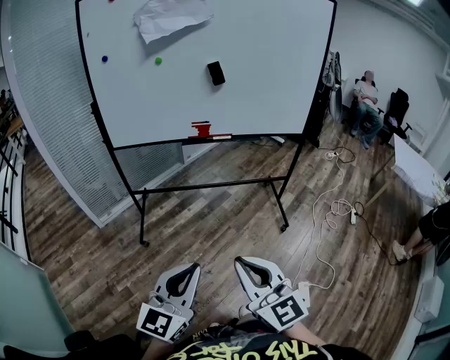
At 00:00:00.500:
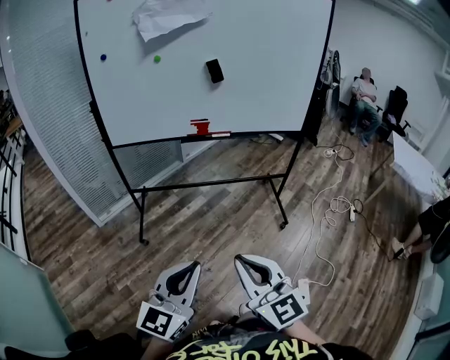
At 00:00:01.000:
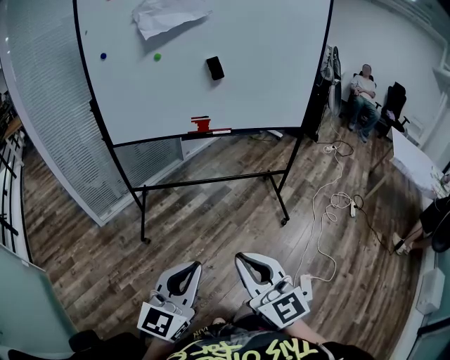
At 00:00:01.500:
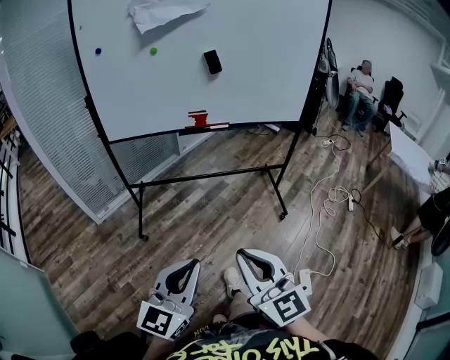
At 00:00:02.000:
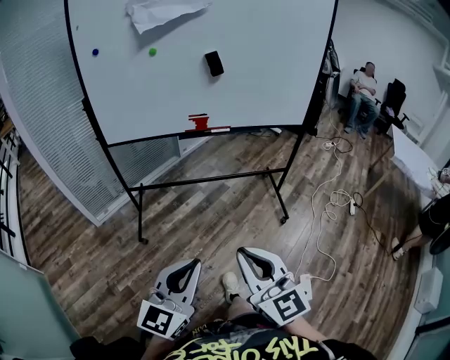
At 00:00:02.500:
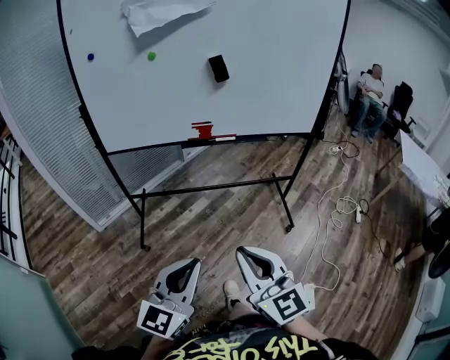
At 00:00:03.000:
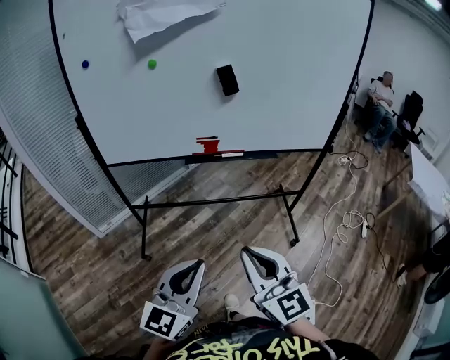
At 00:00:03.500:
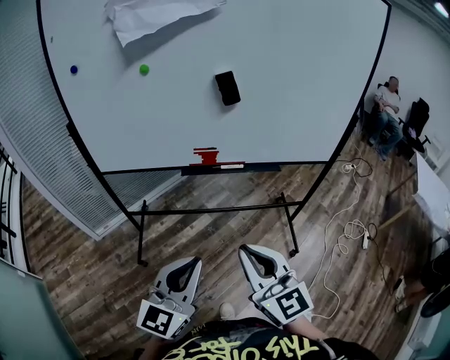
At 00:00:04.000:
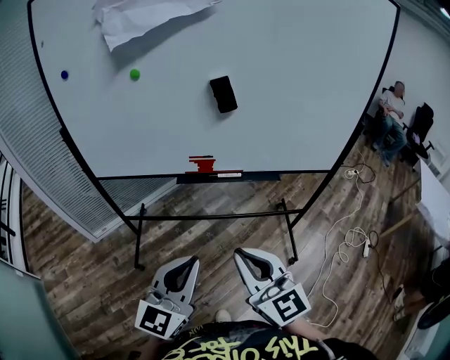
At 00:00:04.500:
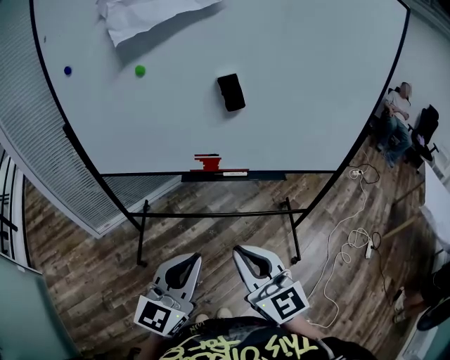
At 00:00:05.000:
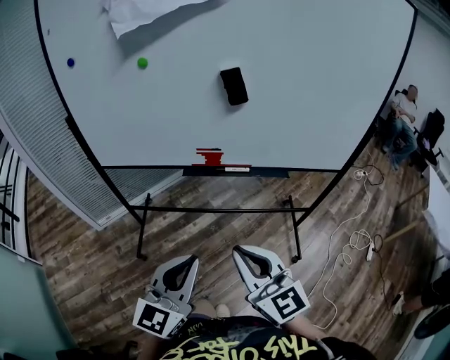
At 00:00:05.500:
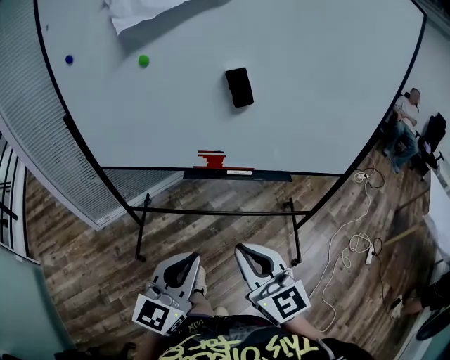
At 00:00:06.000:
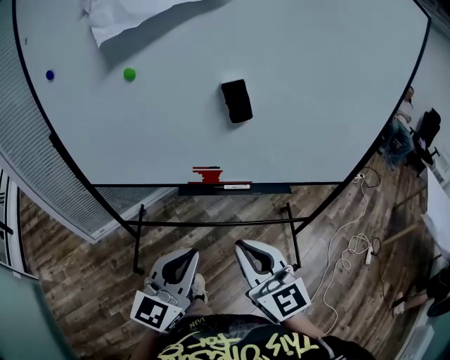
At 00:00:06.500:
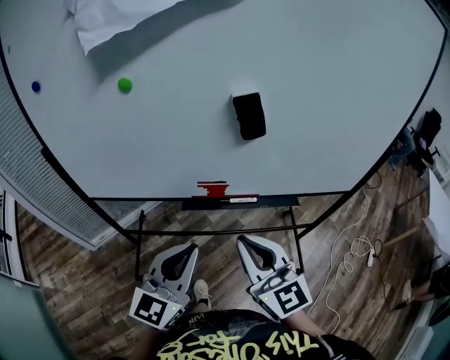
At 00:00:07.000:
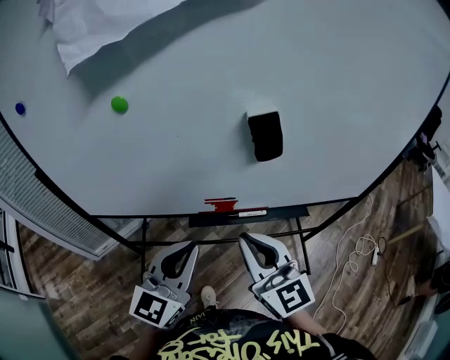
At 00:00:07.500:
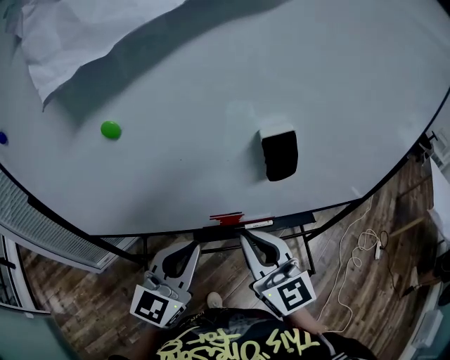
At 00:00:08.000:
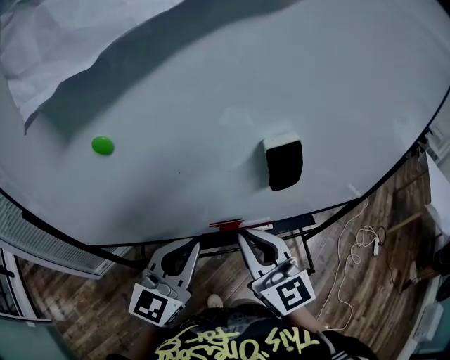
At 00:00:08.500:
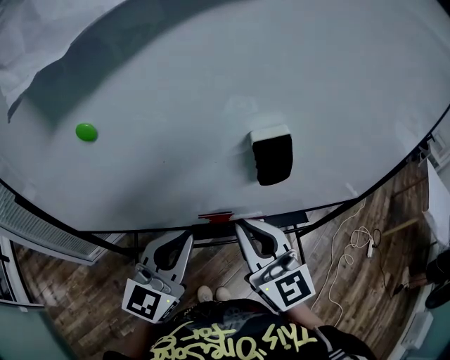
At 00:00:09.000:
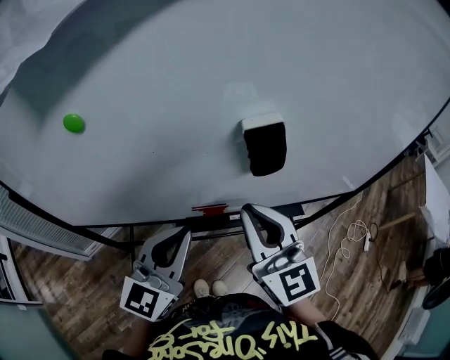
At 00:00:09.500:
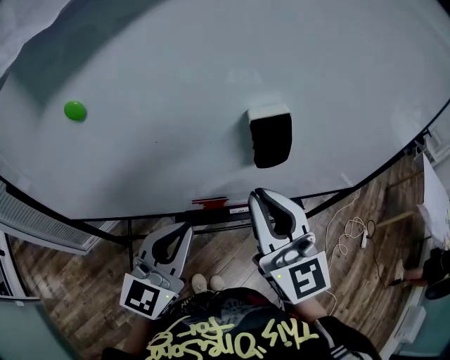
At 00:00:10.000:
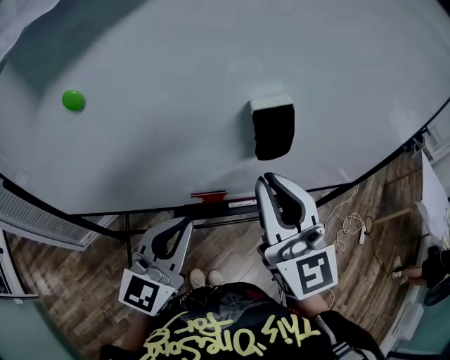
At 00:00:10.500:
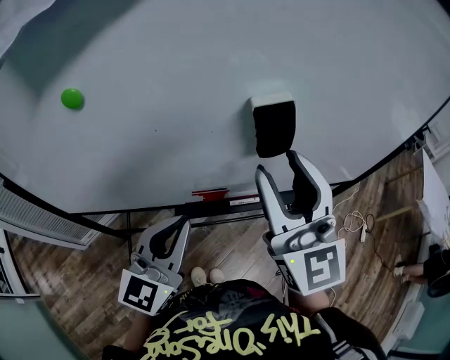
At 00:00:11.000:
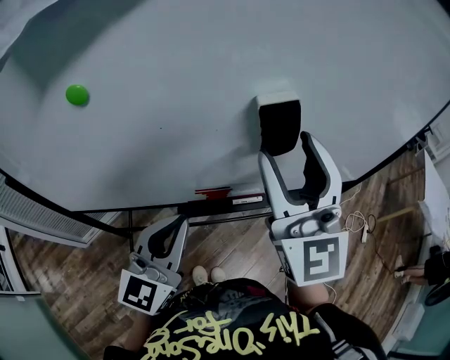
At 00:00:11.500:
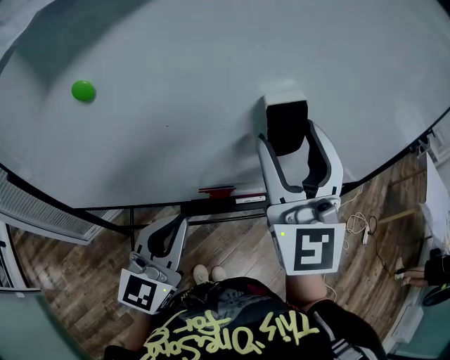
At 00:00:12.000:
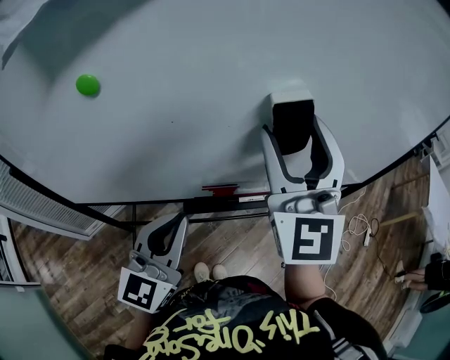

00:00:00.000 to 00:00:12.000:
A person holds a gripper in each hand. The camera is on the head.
00:00:00.000 to 00:00:02.000: The grippers make only small movements.
00:00:02.000 to 00:00:04.000: The two grippers go some 25 cm forward.
00:00:04.000 to 00:00:06.000: Both grippers move forward, about 10 cm.
00:00:06.000 to 00:00:08.000: Both grippers move forward, approximately 20 cm.
00:00:08.000 to 00:00:10.000: The right gripper heads upward and to the right, covering roughly 10 cm.
00:00:10.000 to 00:00:12.000: The right gripper travels forward and upward by approximately 5 cm, swivels about 20 degrees, and opens up.

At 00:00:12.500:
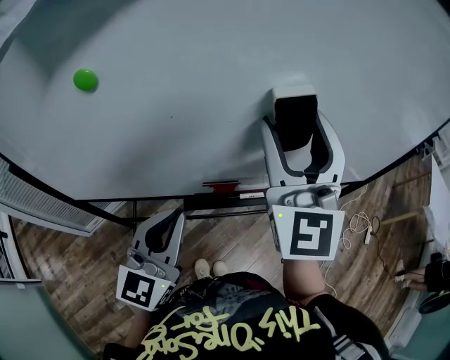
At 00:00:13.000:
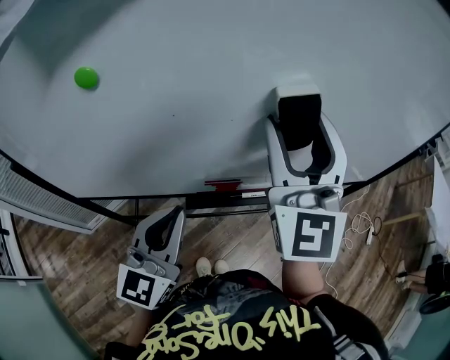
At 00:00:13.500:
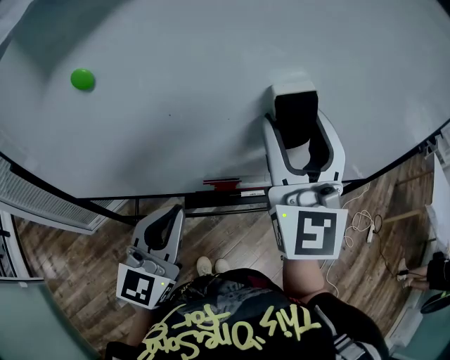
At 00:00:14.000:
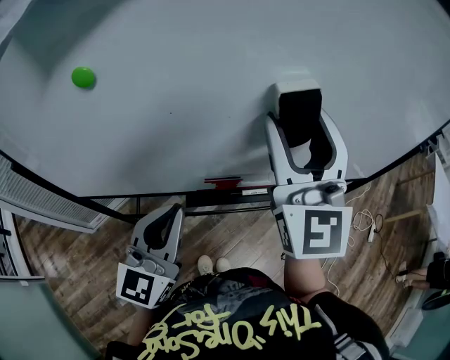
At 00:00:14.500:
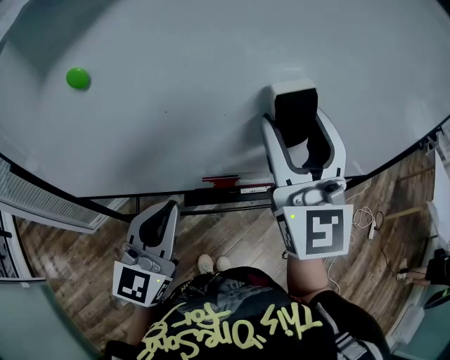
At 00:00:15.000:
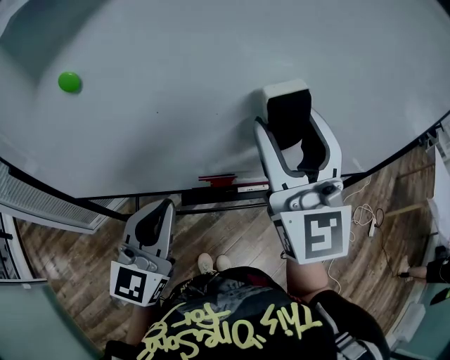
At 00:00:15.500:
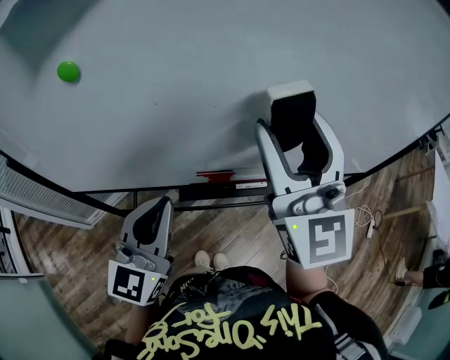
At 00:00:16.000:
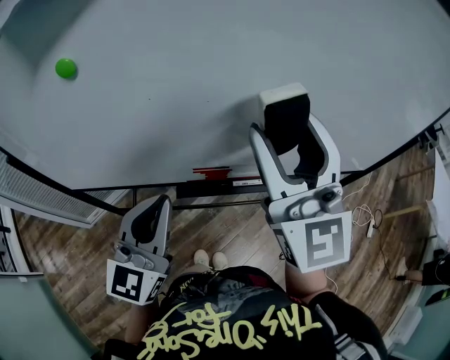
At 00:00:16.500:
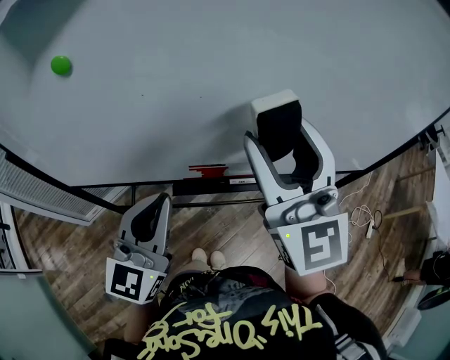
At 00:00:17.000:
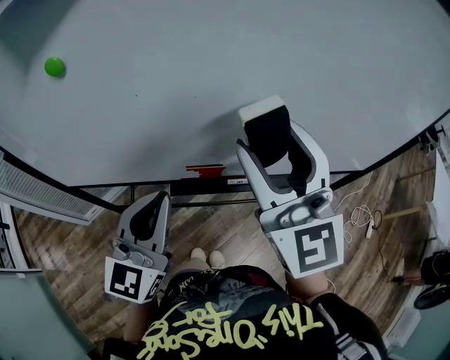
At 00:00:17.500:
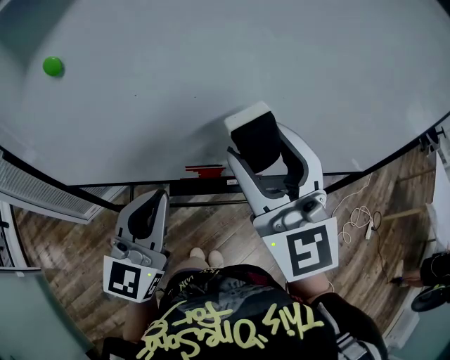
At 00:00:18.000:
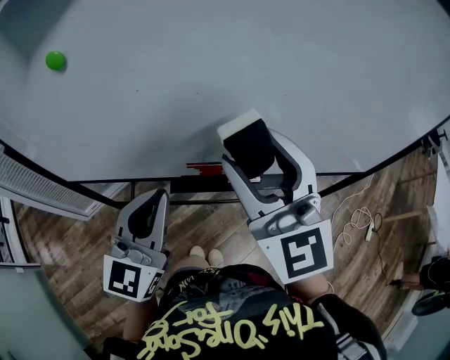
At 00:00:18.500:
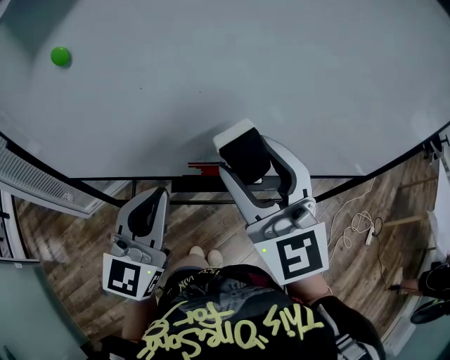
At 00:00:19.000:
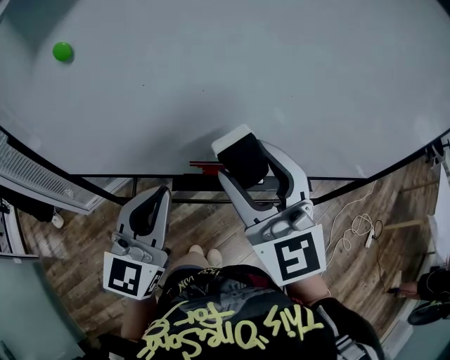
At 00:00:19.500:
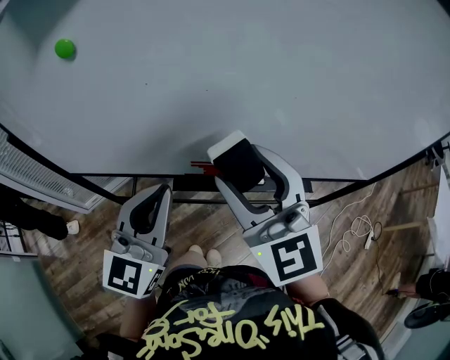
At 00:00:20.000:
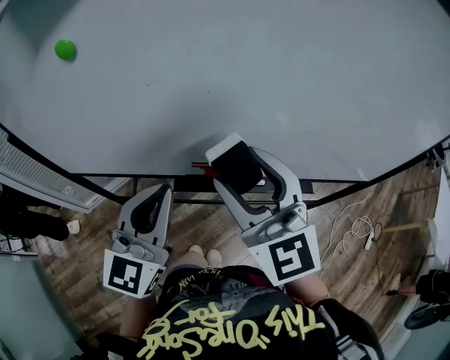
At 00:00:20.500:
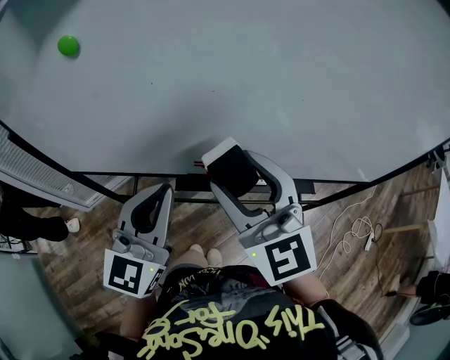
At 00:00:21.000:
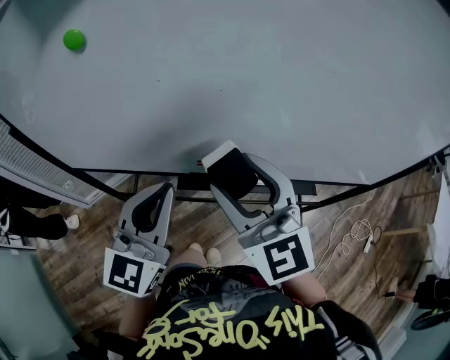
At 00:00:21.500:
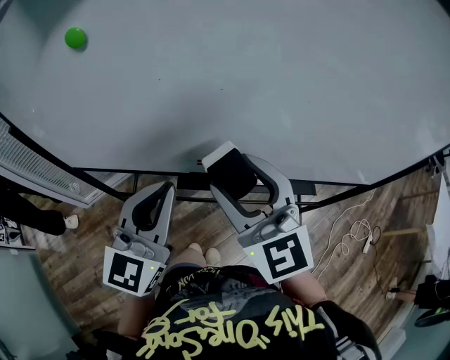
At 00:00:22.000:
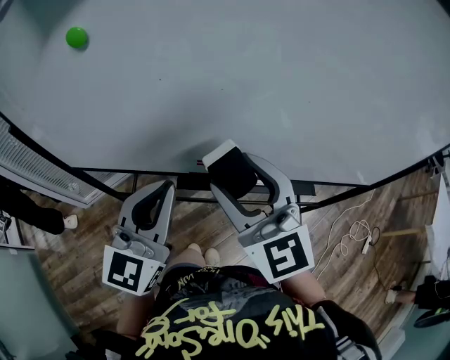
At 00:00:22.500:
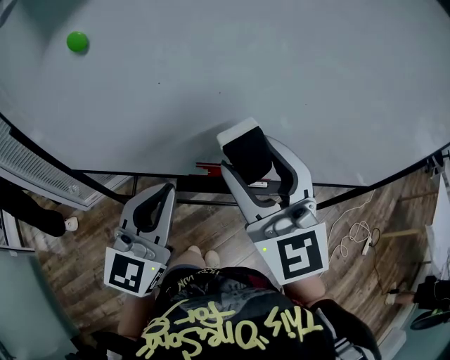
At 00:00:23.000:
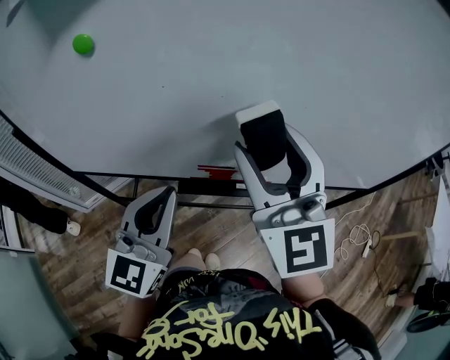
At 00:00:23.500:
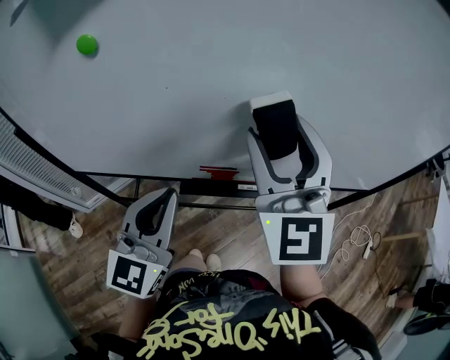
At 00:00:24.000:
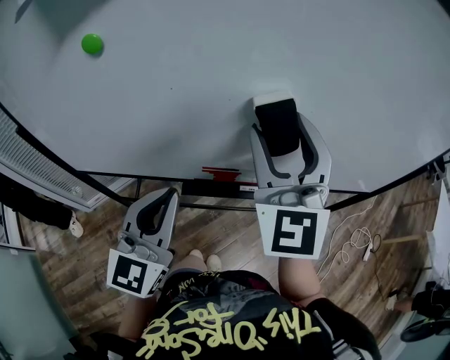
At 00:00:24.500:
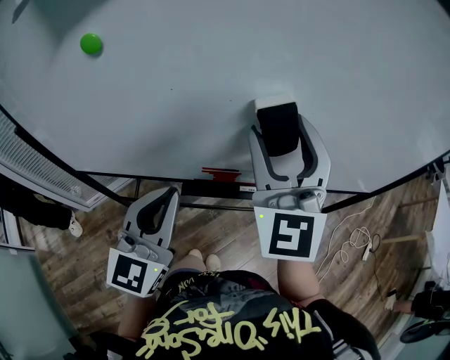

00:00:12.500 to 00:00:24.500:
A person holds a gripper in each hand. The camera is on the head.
00:00:12.500 to 00:00:16.500: The grippers make only small movements.
00:00:16.500 to 00:00:18.500: The right gripper changes place by some 5 cm.
00:00:18.500 to 00:00:22.500: There are only small adjustments of the grippers.
00:00:22.500 to 00:00:24.500: The right gripper shifts by approximately 5 cm, and changes its angle by some 20 degrees.

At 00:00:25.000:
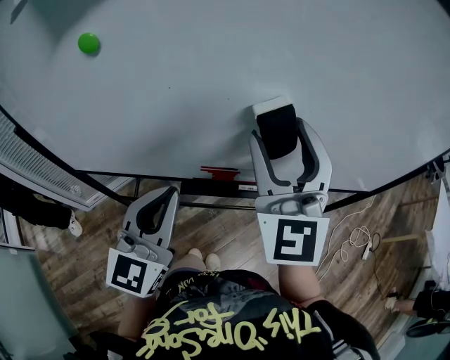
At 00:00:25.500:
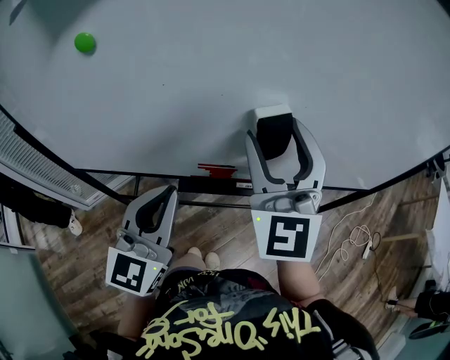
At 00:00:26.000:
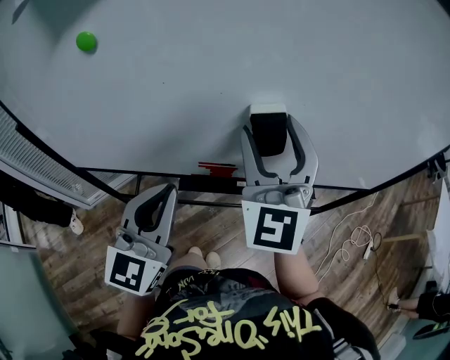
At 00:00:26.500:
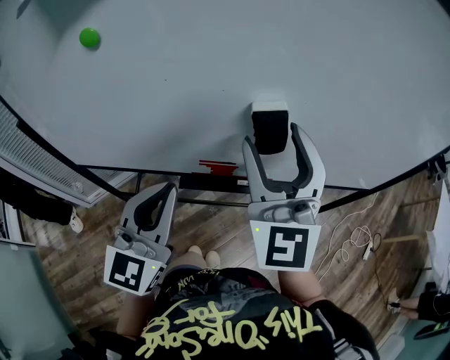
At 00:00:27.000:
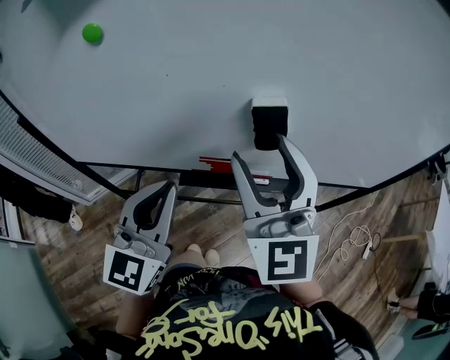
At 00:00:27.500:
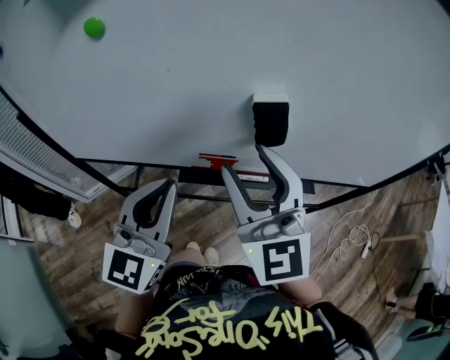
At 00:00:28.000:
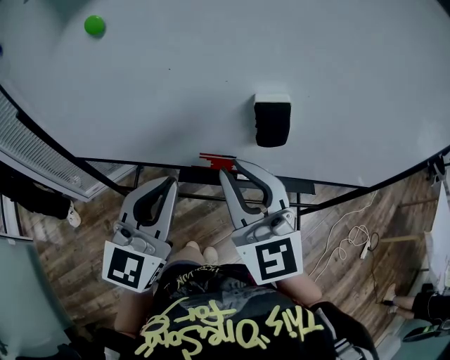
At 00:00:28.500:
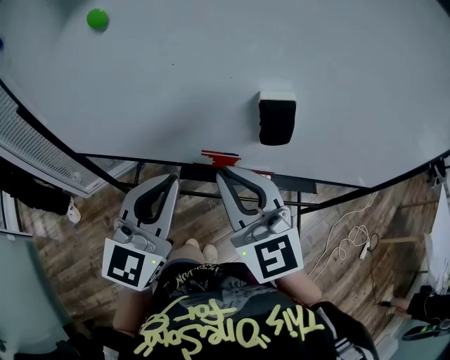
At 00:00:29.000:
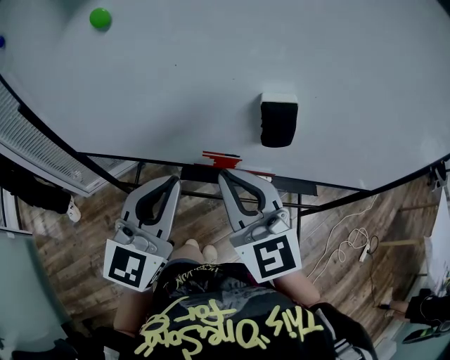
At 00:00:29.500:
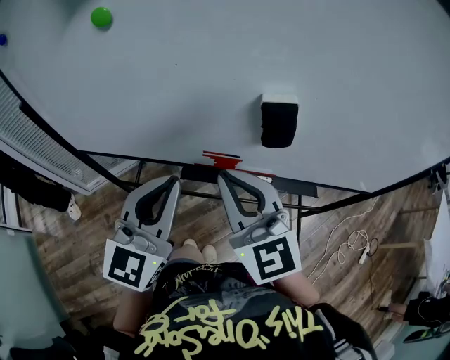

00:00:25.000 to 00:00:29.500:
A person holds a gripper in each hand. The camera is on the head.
00:00:25.000 to 00:00:27.000: The right gripper shifts by roughly 5 cm.
00:00:27.000 to 00:00:29.500: The right gripper moves downward and to the left, some 10 cm, turns by some 20 degrees, and closes its fingers.
